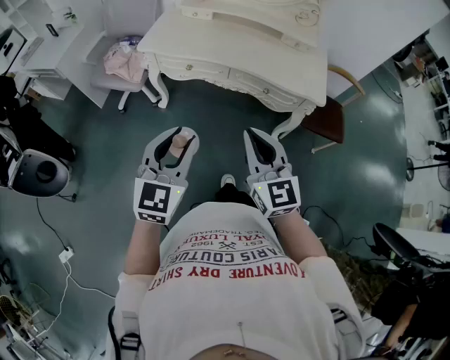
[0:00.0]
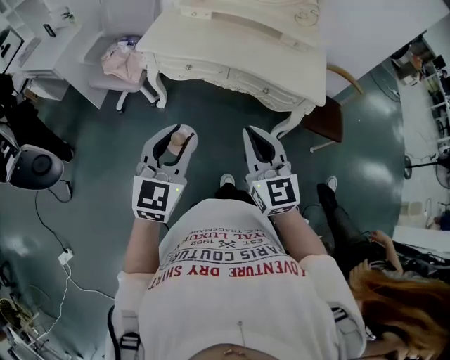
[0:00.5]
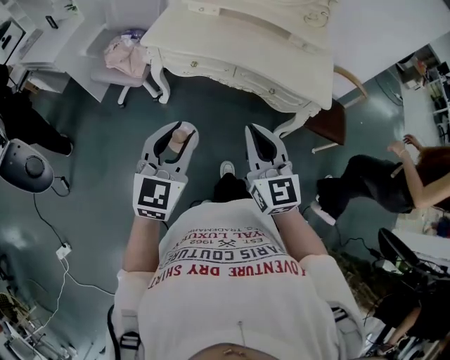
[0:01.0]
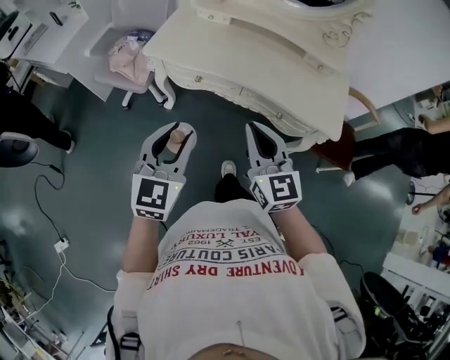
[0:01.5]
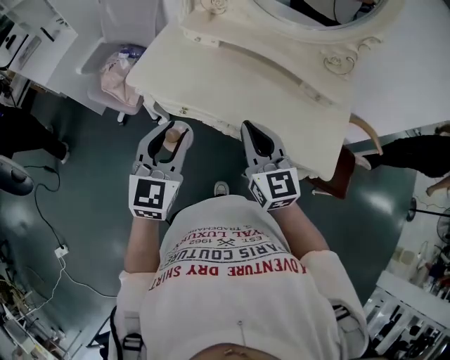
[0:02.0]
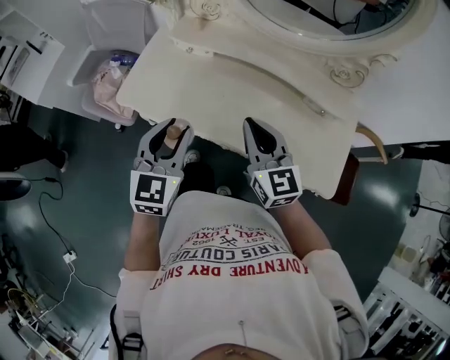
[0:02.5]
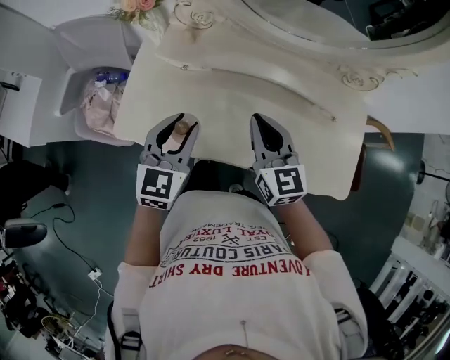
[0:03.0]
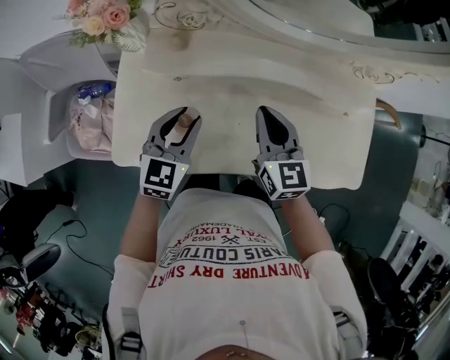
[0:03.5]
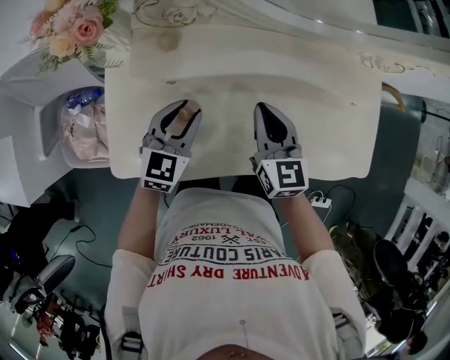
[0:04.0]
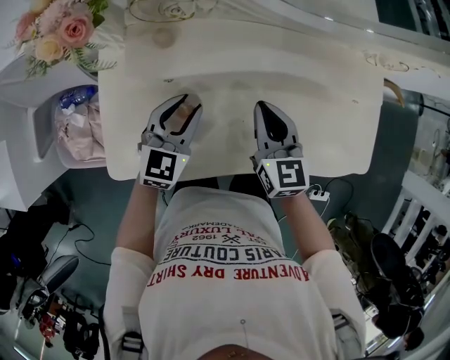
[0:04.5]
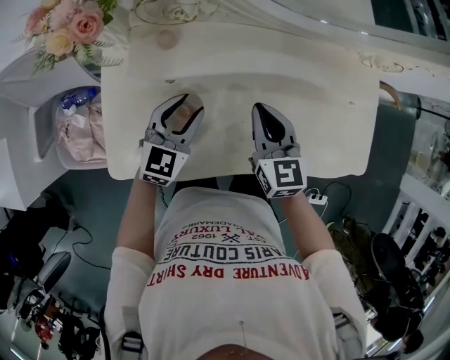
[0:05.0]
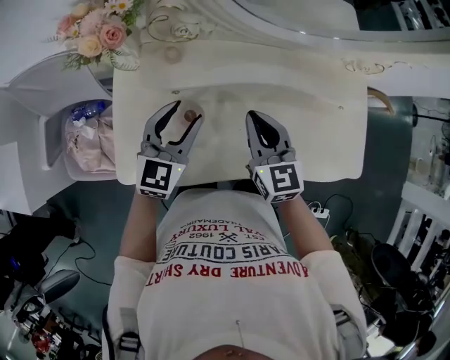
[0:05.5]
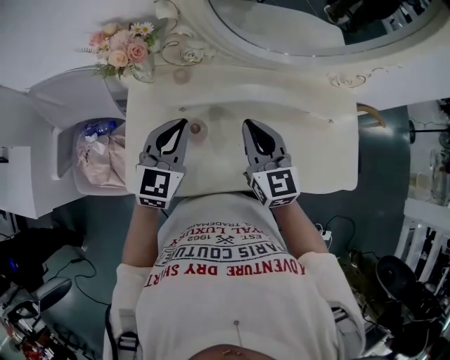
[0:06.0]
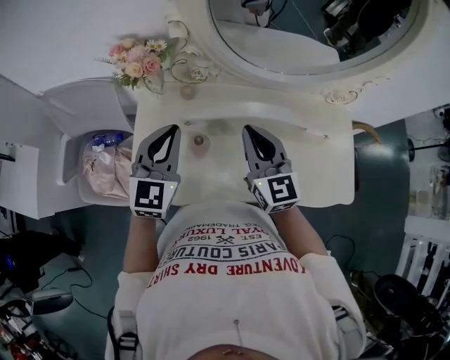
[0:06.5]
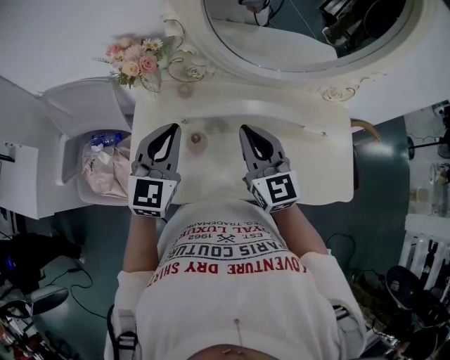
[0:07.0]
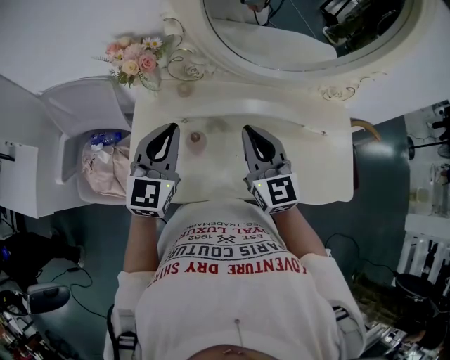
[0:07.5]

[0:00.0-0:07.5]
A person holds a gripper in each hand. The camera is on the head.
0.0 to 2.0 s: The two grippers go about 35 cm forward.
2.0 to 4.0 s: The right gripper ends up roughly 35 cm from where it was, and swivels approximately 30 degrees; the left gripper shifts by roughly 40 cm, and turns by approximately 40 degrees.
4.0 to 5.5 s: The left gripper heads upward, covering some 5 cm.
5.5 to 7.5 s: The grippers both shift upward by roughly 10 cm. The left gripper closes.

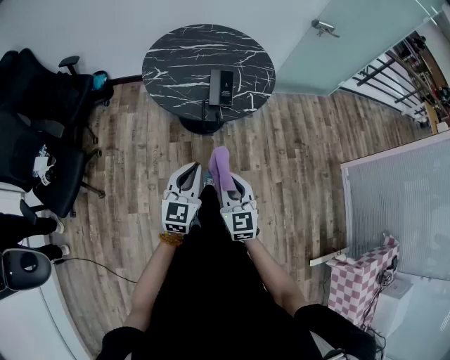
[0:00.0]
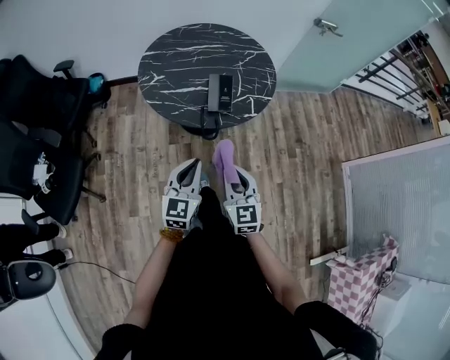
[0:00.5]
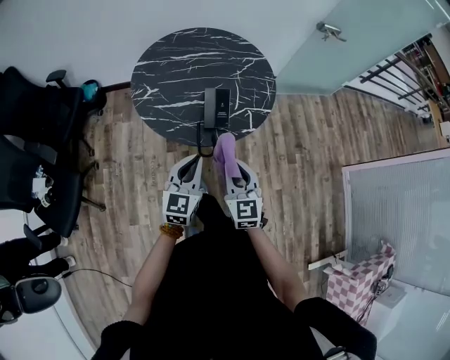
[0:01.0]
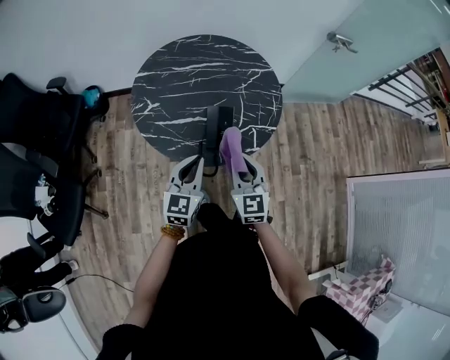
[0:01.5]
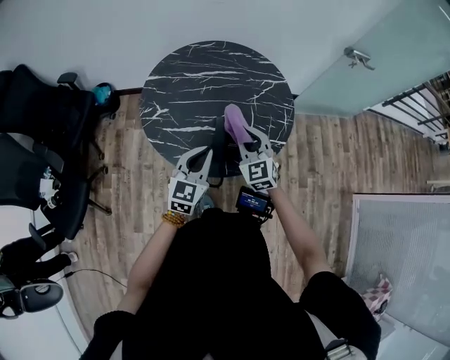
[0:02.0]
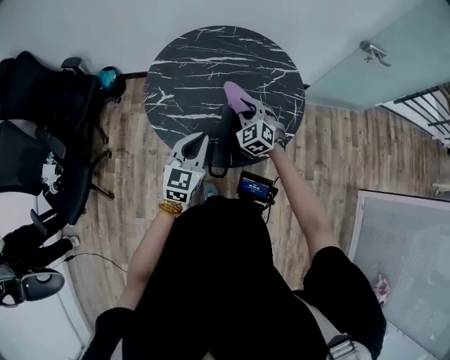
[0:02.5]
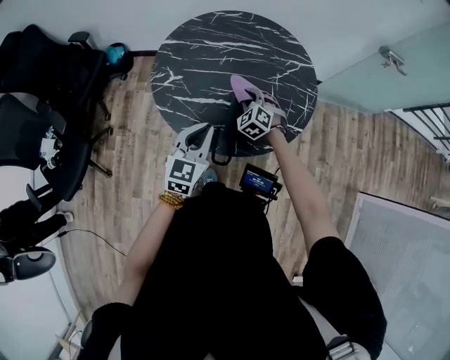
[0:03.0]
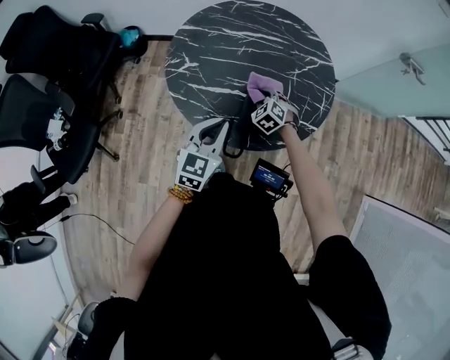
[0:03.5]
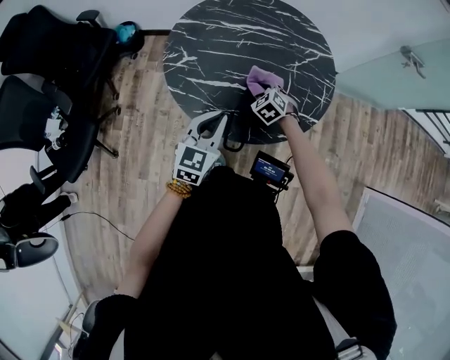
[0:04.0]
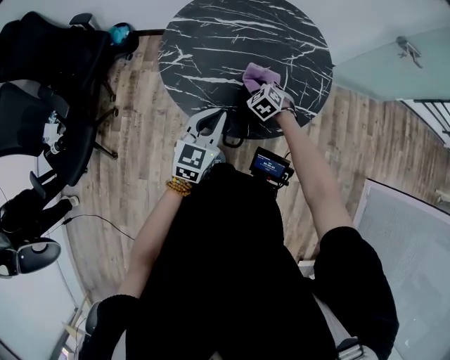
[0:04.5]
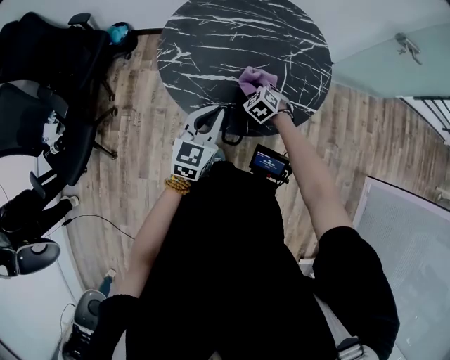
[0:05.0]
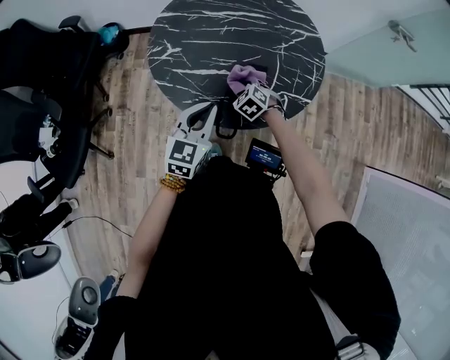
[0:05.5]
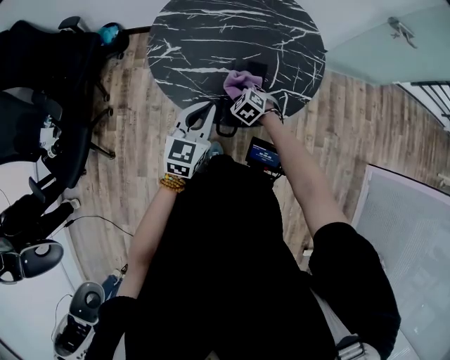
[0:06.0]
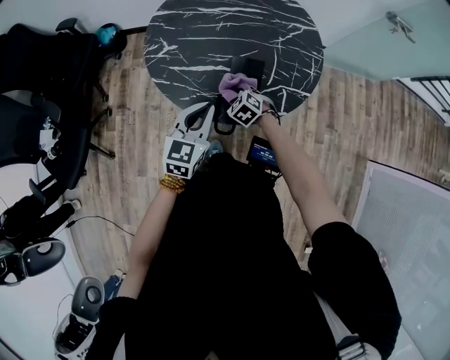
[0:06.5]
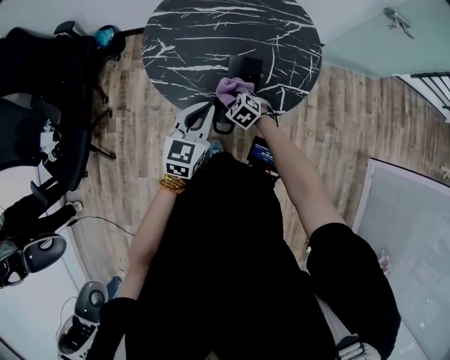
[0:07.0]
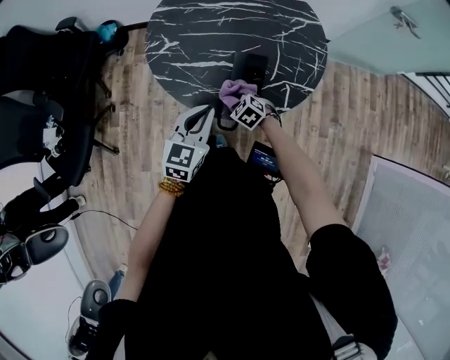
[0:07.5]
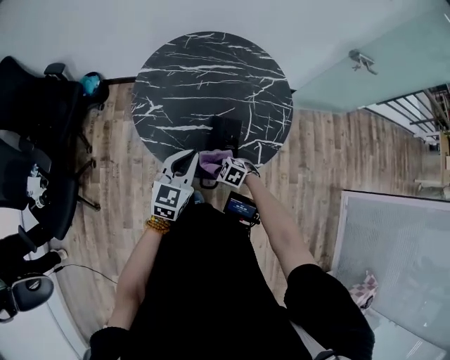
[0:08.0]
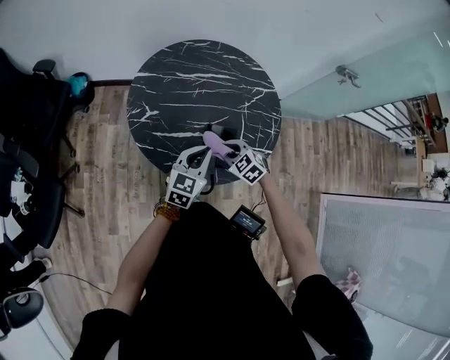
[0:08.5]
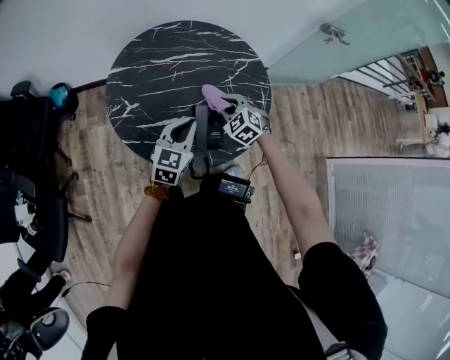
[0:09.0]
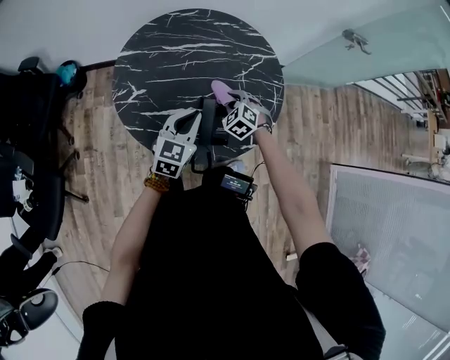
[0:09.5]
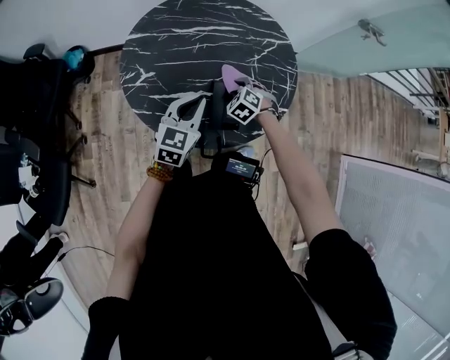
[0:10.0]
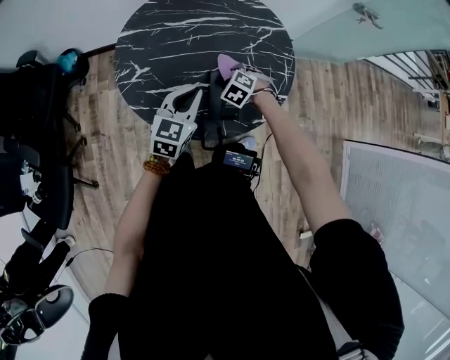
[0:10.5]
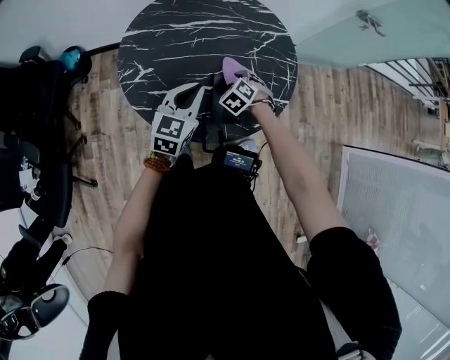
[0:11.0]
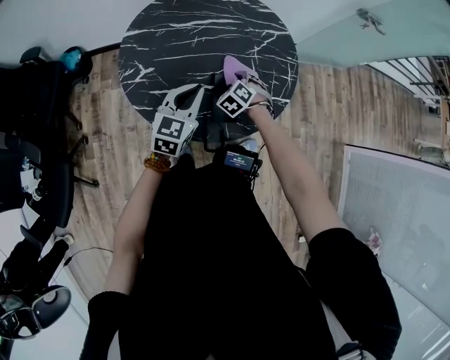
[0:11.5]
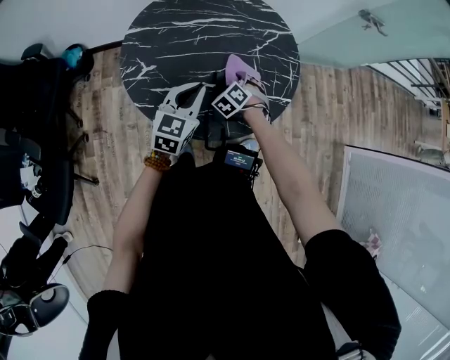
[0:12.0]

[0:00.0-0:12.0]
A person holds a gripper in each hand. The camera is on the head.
0.0 to 2.0 s: Both grippers travel together forward, roughly 40 cm. The right gripper swivels about 20 degrees.
2.0 to 4.0 s: The right gripper travels downward and forward by approximately 20 cm, and tips its fingers downward by about 40 degrees. Meanwhile the left gripper ends up roughly 5 cm from where it was.
4.0 to 6.0 s: The right gripper moves backward, about 10 cm.
6.0 to 8.0 s: The right gripper moves backward, about 10 cm, and rotates roughly 20 degrees.
8.0 to 10.0 s: The right gripper ends up roughly 20 cm from where it was, and turns by approximately 40 degrees, while the left gripper moves approximately 10 cm.
10.0 to 12.0 s: The grippers move only a little.

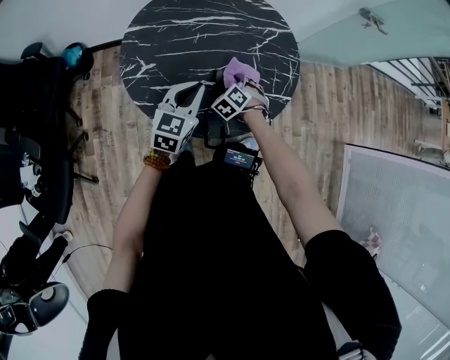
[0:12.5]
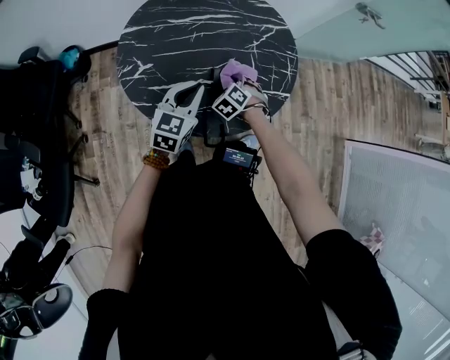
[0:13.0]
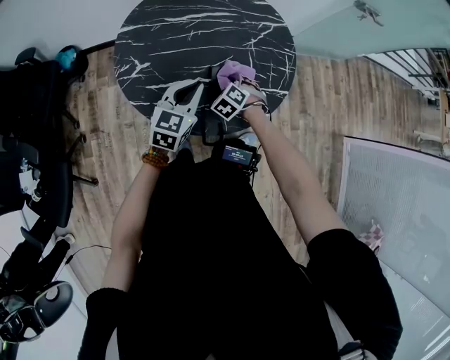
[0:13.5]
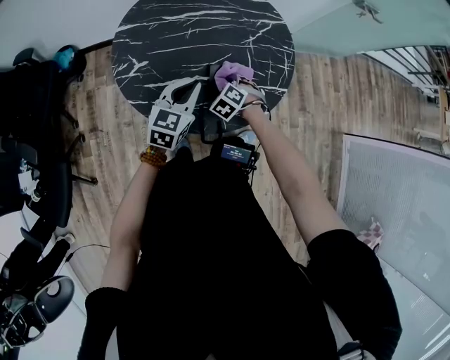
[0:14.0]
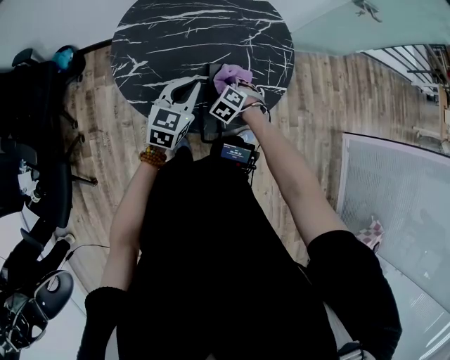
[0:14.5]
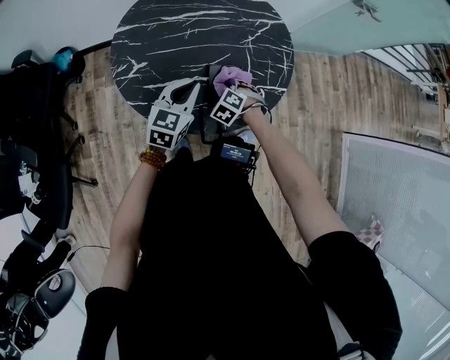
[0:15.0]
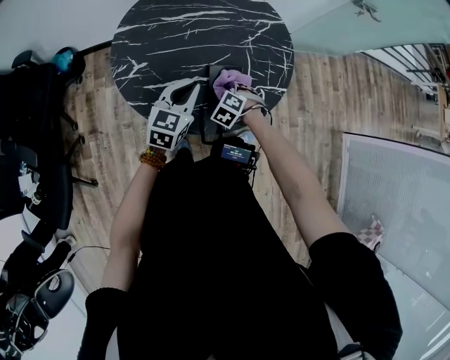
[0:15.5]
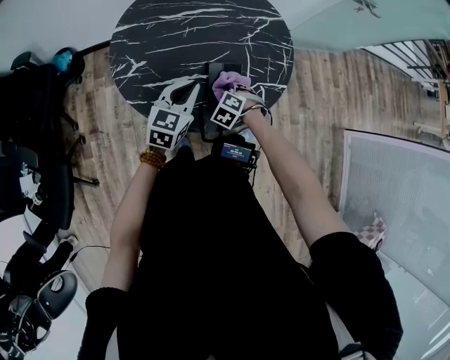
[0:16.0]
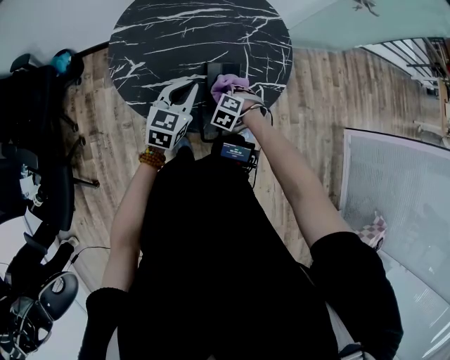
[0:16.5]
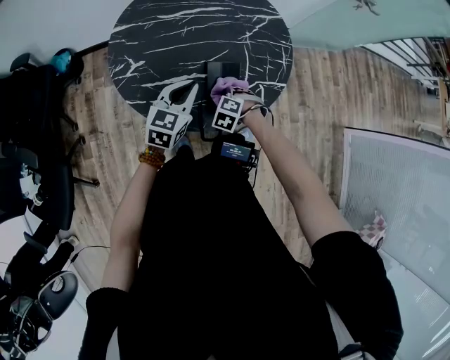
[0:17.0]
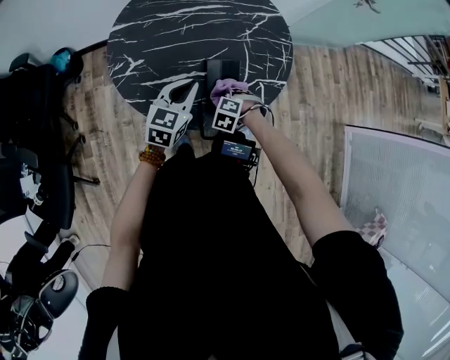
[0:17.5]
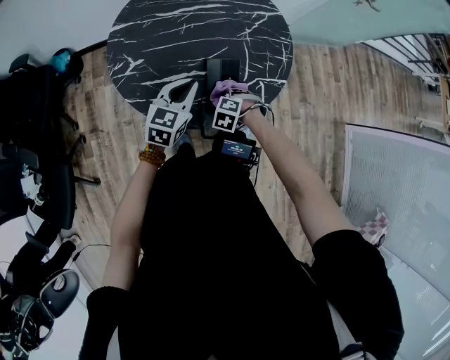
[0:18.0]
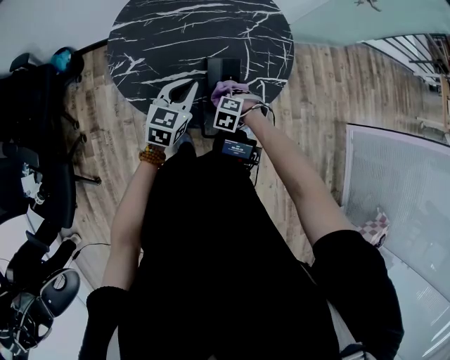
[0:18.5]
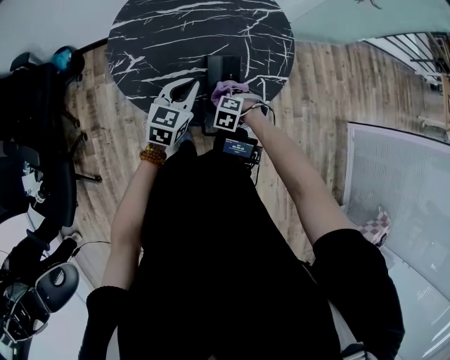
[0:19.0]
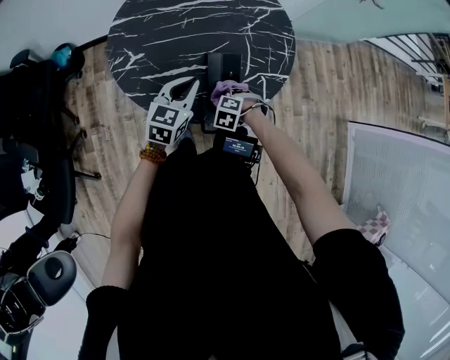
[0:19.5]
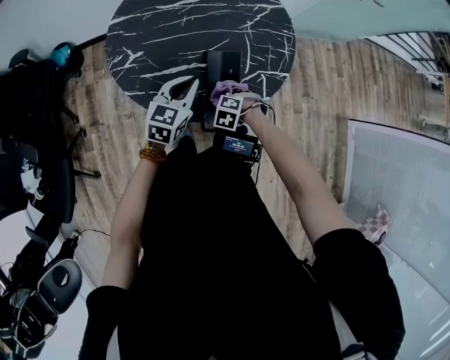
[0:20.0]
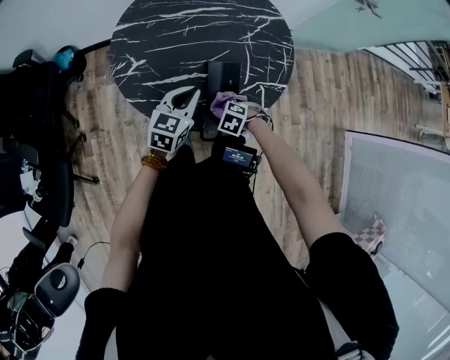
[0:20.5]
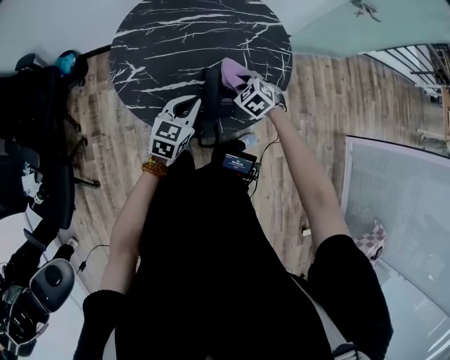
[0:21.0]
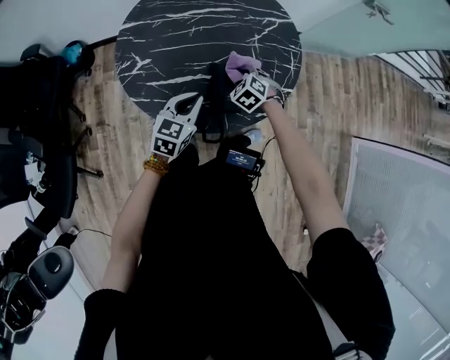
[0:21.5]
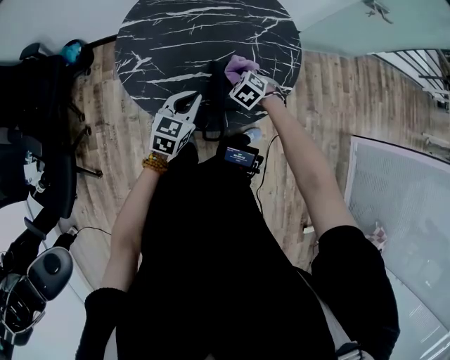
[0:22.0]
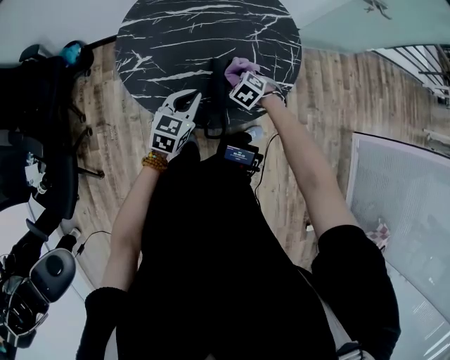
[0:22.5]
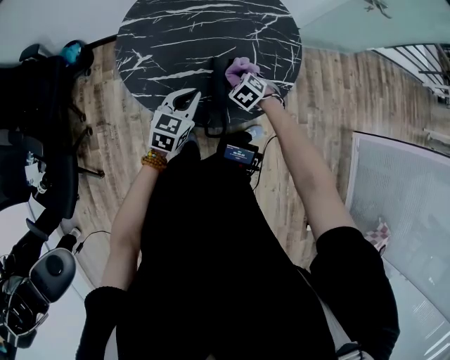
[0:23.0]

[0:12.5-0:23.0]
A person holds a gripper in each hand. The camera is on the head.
12.5 to 14.5 s: The grippers move only a little.
14.5 to 16.5 s: The grippers stay close to where they were, moving slightly.
16.5 to 19.0 s: The right gripper shifts by roughly 5 cm.
19.0 to 21.0 s: The right gripper shifts by approximately 15 cm, and rotates about 30 degrees.
21.0 to 23.0 s: The right gripper goes roughly 5 cm downward.
